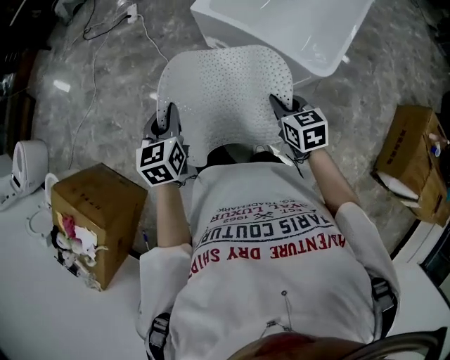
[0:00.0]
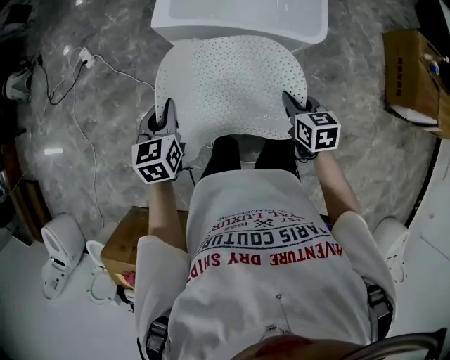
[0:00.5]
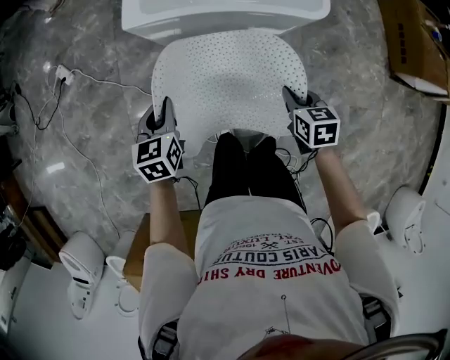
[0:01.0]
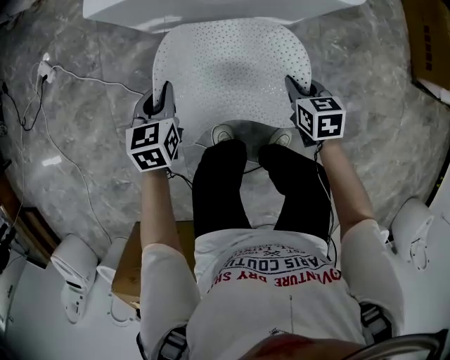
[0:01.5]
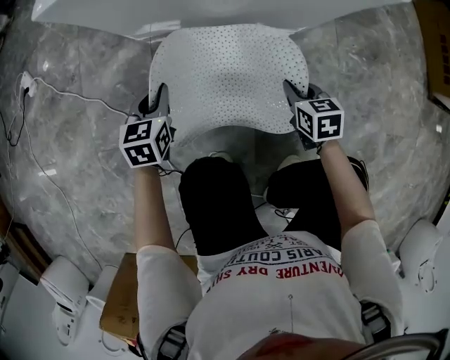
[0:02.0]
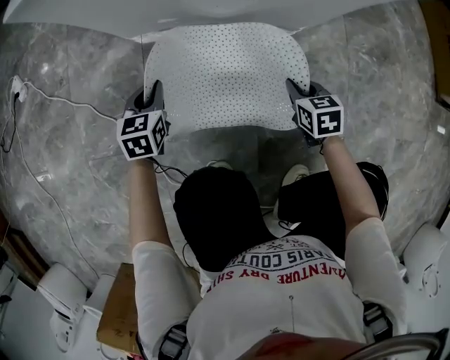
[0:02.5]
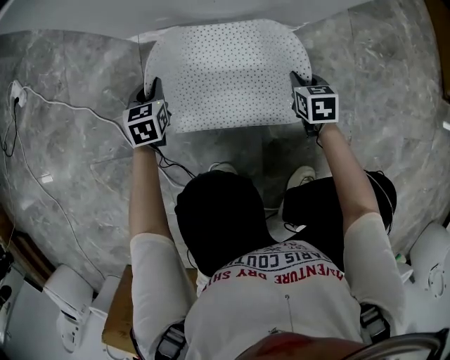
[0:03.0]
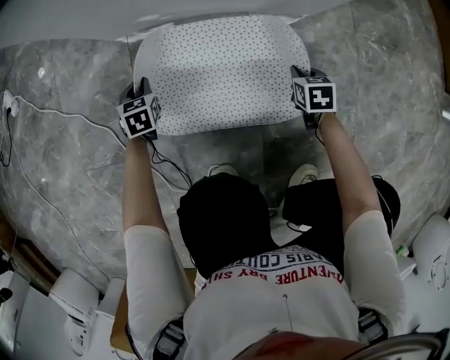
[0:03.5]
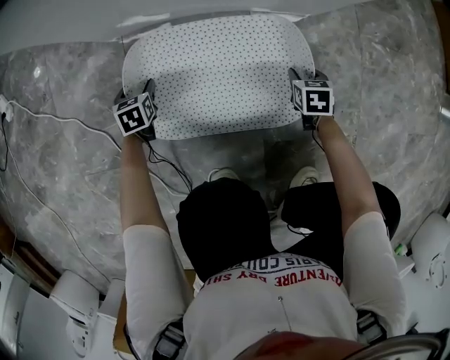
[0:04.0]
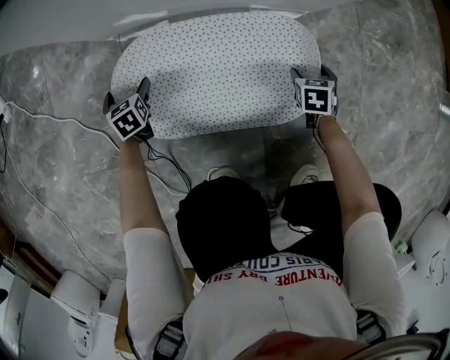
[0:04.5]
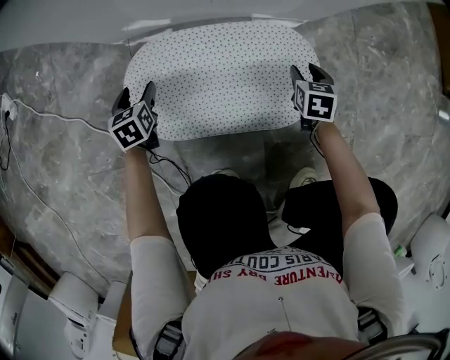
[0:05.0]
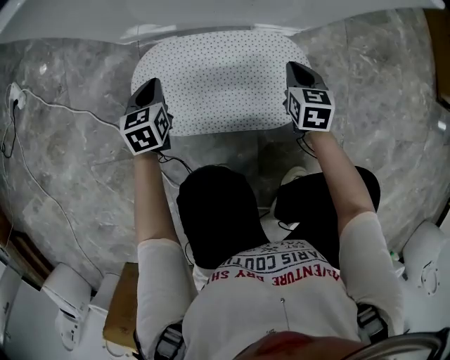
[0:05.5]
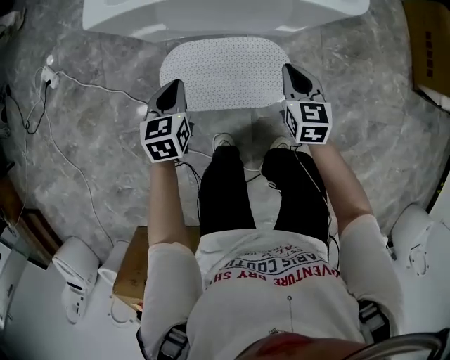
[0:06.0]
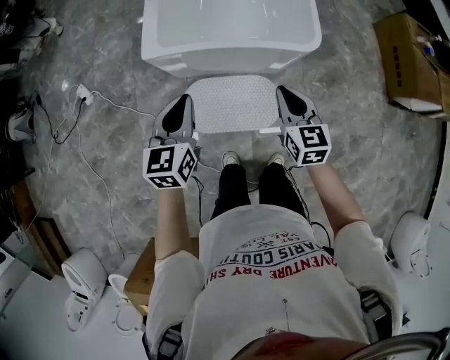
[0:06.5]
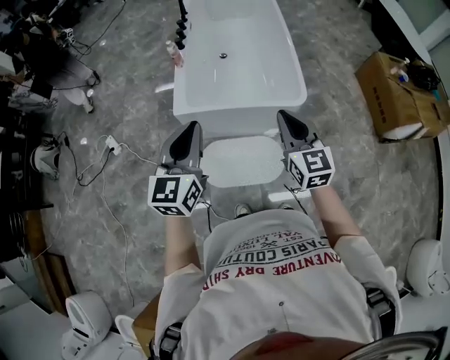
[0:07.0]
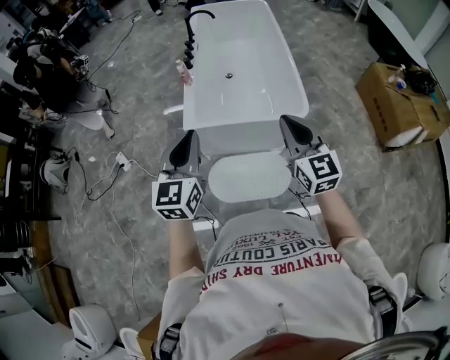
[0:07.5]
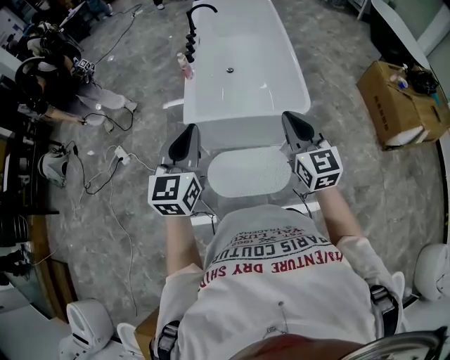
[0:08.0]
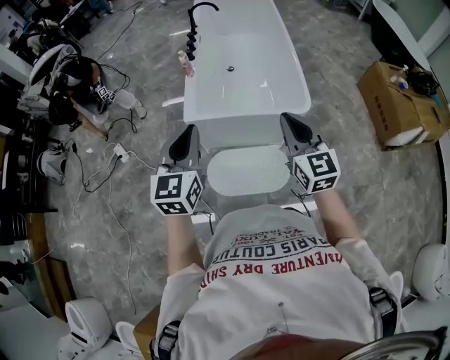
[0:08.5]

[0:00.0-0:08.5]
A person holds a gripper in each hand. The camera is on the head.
0:00.0 to 0:02.0: Both grippers move downward, some 60 cm. The right gripper turns by some 40 degrees. The left gripper turns by some 40 degrees.
0:02.0 to 0:04.0: Both grippers travel together downward, approximately 25 cm. The left gripper opens. Meanwhile the right gripper opens its fingers.
0:04.0 to 0:06.5: Both grippers travel together upward, roughly 80 cm. The right gripper points its fingers approximately 40 degrees further upward, and closes its fingers; the left gripper angles its fingers upward, by approximately 40 degrees, and closes its fingers.
0:06.5 to 0:08.5: Both grippers move upward, about 25 cm. The right gripper rotates approximately 20 degrees.

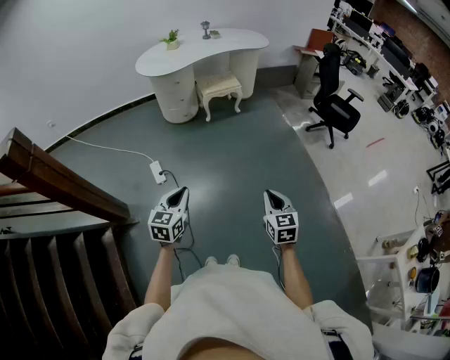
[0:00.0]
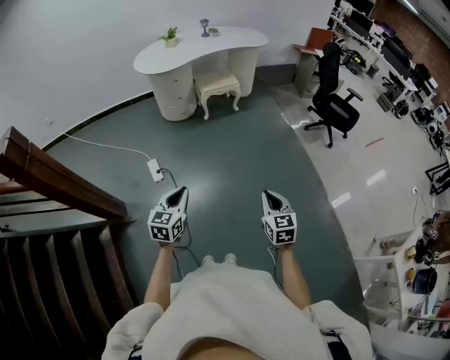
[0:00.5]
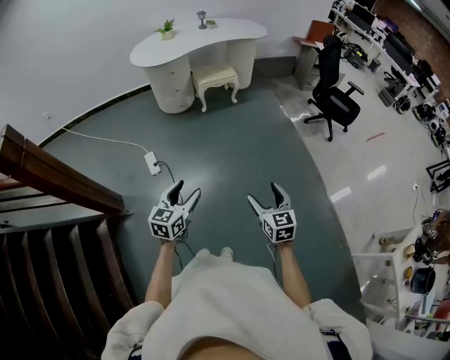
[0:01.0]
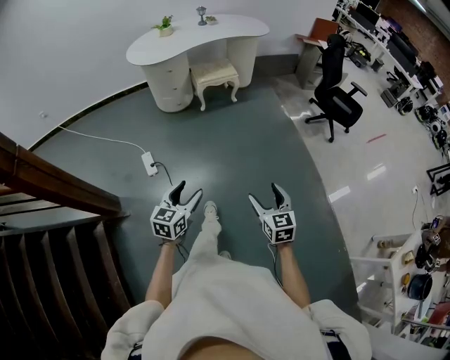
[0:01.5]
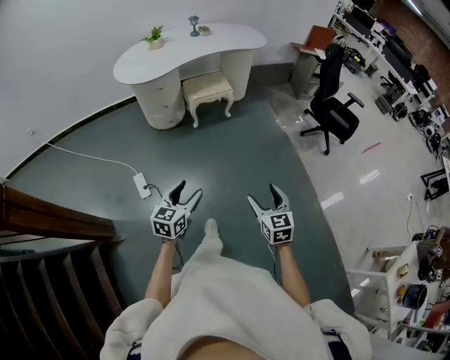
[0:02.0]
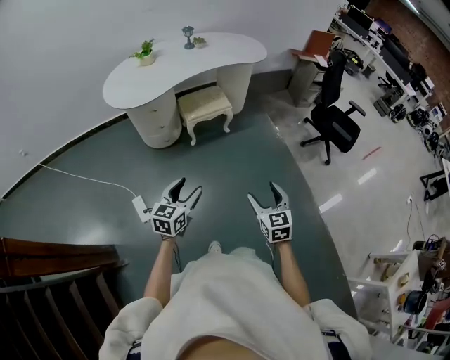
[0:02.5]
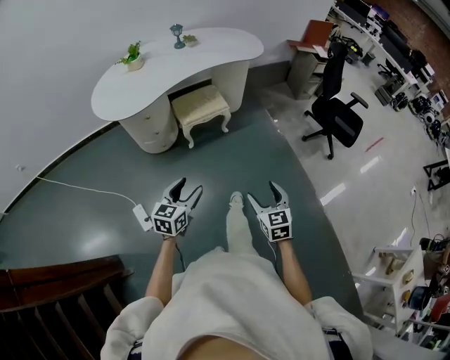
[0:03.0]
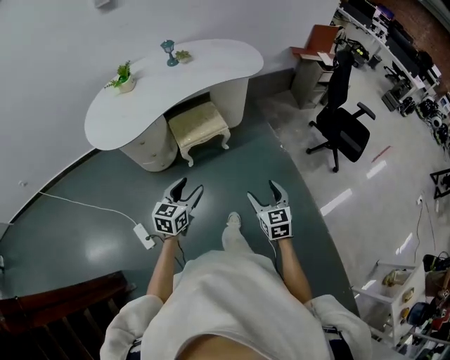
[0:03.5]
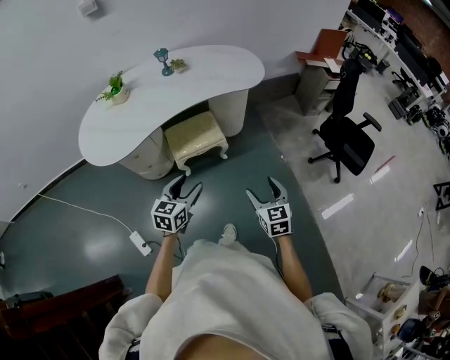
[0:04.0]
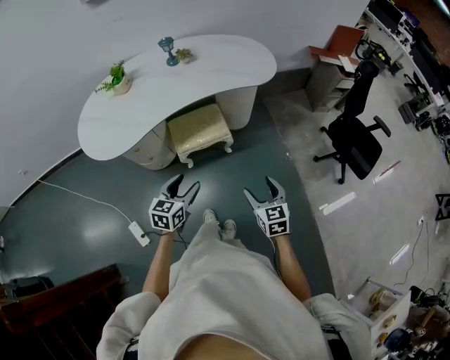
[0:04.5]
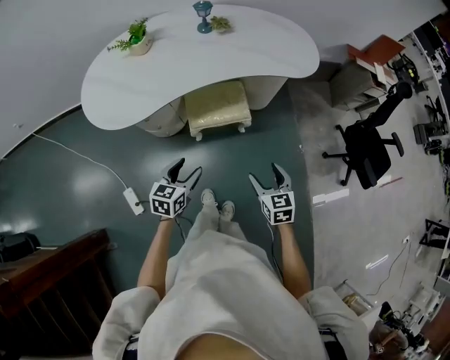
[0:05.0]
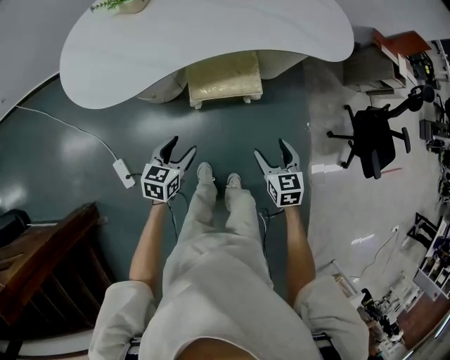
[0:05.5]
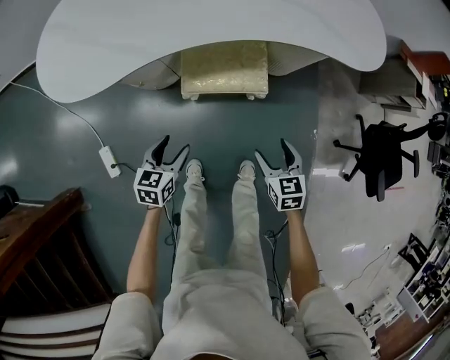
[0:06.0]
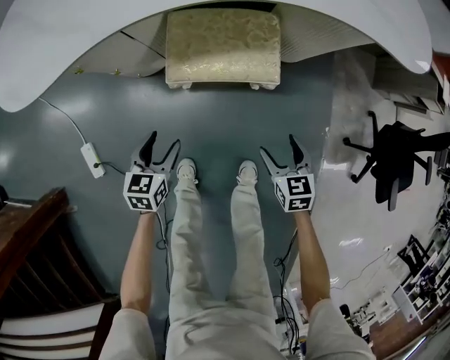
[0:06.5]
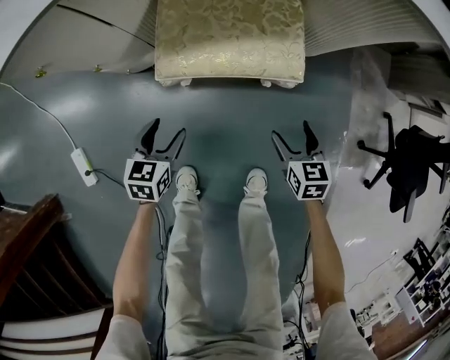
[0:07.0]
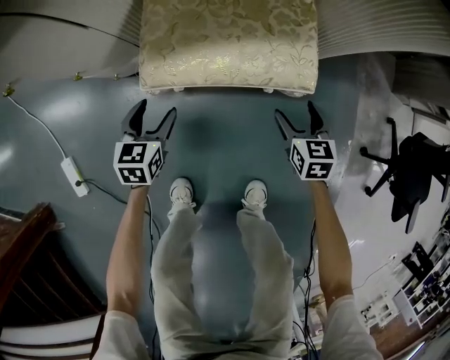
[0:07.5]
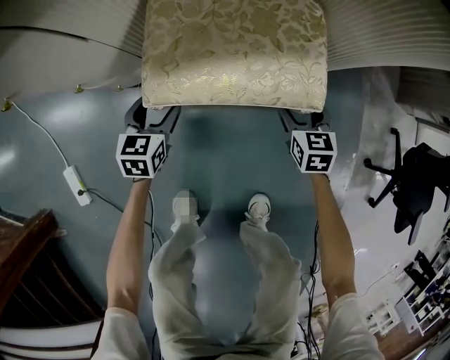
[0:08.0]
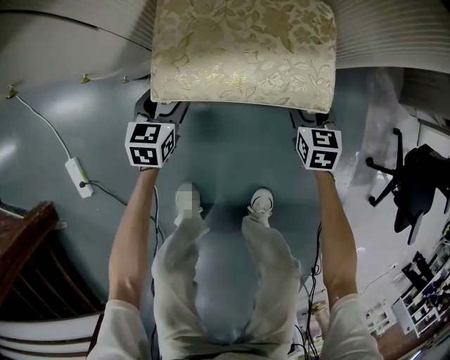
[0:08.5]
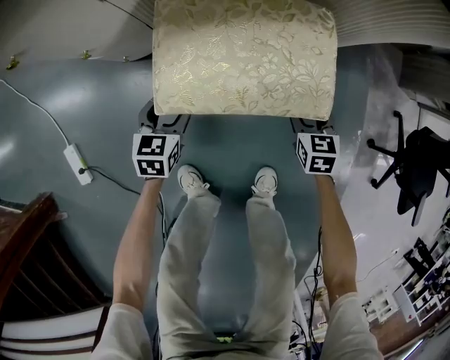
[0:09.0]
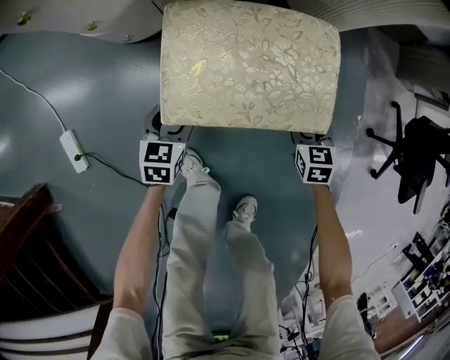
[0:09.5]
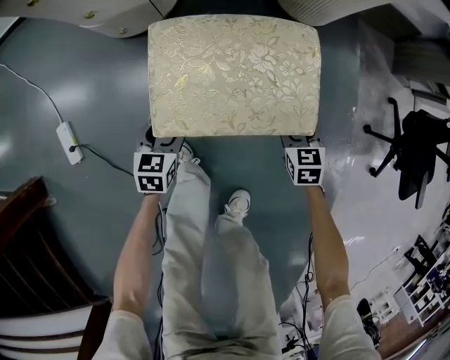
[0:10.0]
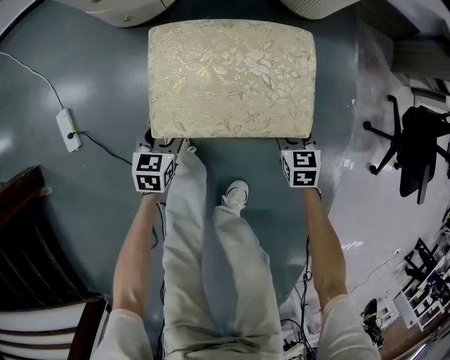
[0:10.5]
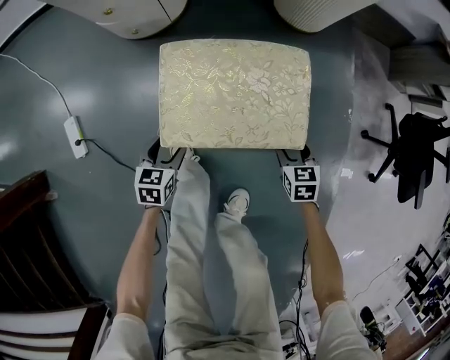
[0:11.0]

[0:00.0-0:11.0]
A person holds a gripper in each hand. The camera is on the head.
0:00.0 to 0:02.0: Both grippers move forward, some 25 cm. The left gripper opens its fingers; the right gripper opens up.
0:02.0 to 0:03.5: Both grippers are carried forward, roughly 50 cm.
0:03.5 to 0:05.5: Both grippers travel together forward and downward, approximately 35 cm. The left gripper turns by approximately 20 degrees. The right gripper changes its angle by approximately 20 degrees.
0:05.5 to 0:07.5: Both grippers travel together downward, about 50 cm.
0:07.5 to 0:09.0: The right gripper reaches some 5 cm forward, then returns; the left gripper goes forward and returns, some 5 cm each way.
0:09.0 to 0:11.0: Both grippers move forward, approximately 5 cm.

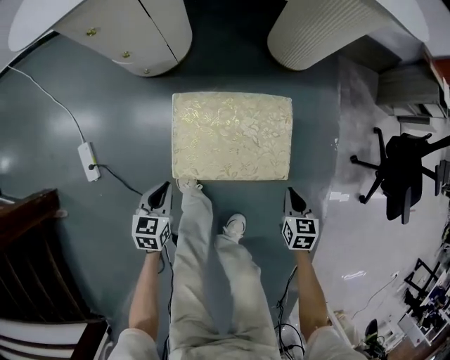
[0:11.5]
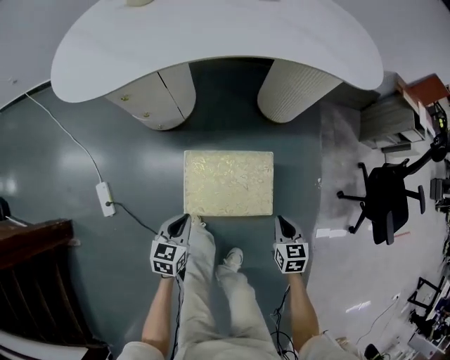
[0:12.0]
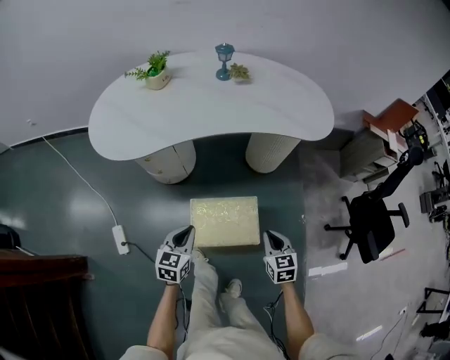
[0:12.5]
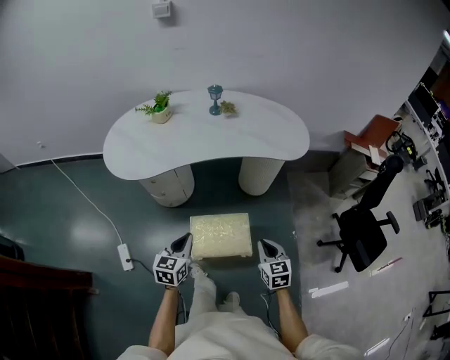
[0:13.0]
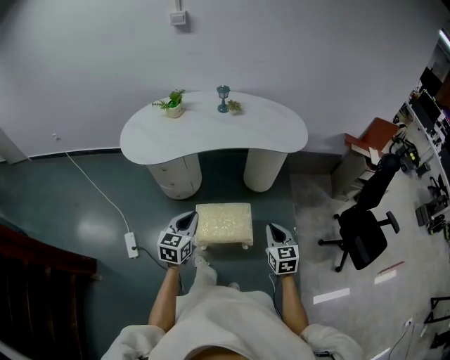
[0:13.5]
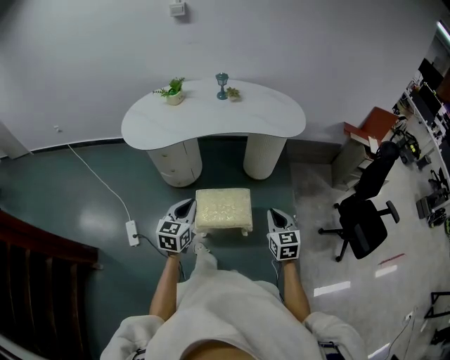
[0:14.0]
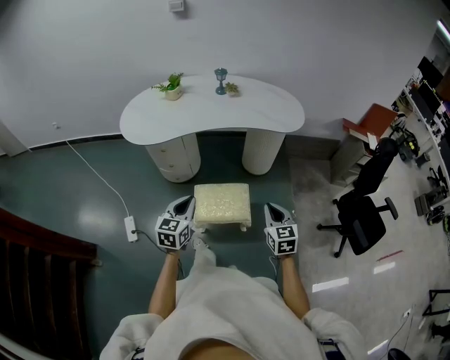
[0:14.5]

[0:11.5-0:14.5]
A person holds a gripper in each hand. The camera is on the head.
0:11.5 to 0:13.0: The two grippers go roughly 50 cm upward. The left gripper swivels some 20 degrees. The right gripper changes its angle by approximately 20 degrees.
0:13.0 to 0:14.5: The two grippers go about 15 cm backward and upward.

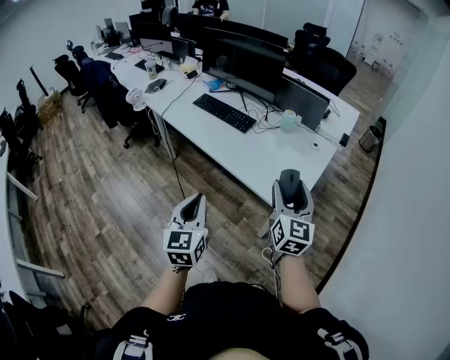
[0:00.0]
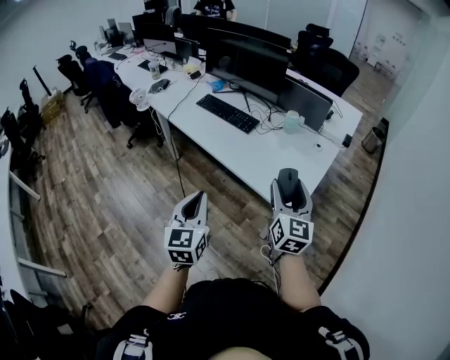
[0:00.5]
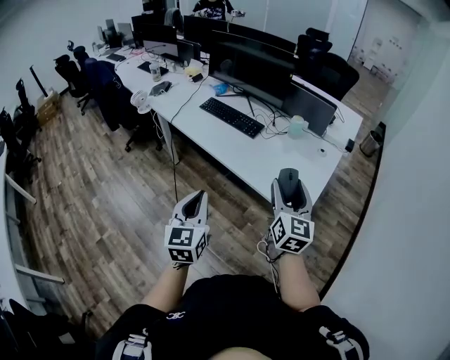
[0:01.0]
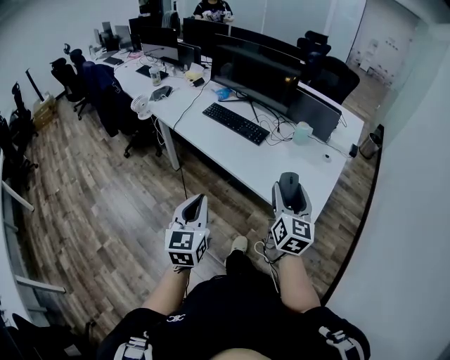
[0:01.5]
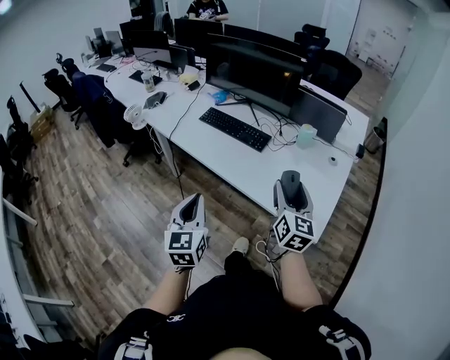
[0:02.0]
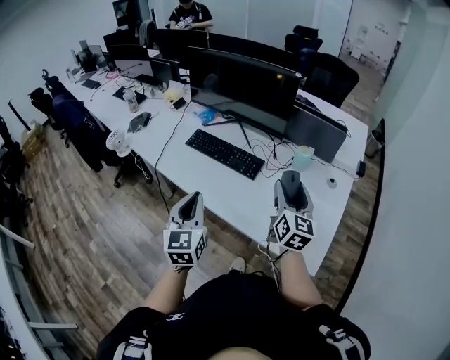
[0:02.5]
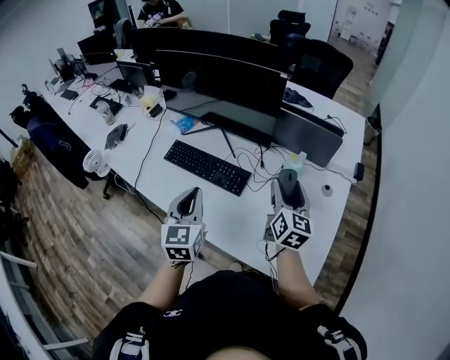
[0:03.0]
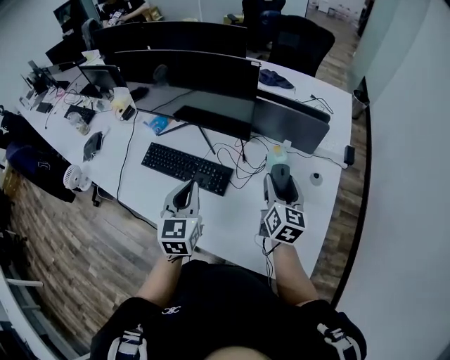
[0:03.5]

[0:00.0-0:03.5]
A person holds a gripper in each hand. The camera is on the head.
0:00.0 to 0:02.0: The two grippers go some 20 cm forward and to the left.
0:02.0 to 0:03.5: Both grippers are carried forward, about 50 cm.
